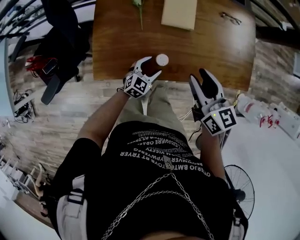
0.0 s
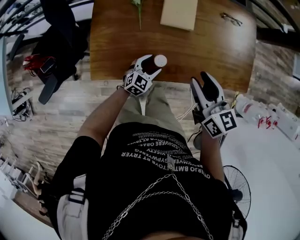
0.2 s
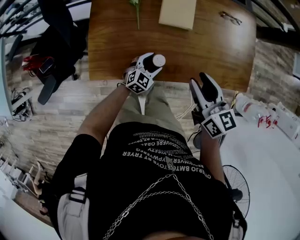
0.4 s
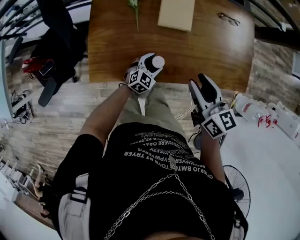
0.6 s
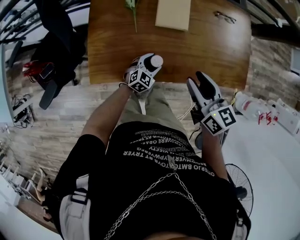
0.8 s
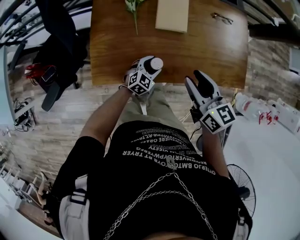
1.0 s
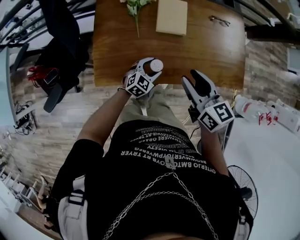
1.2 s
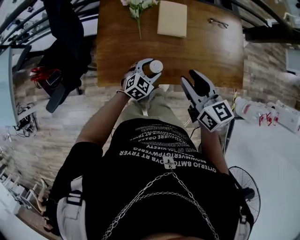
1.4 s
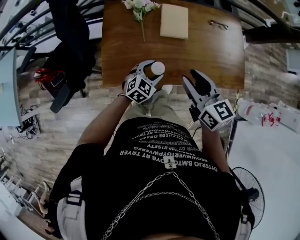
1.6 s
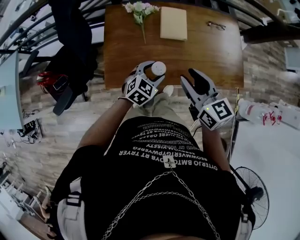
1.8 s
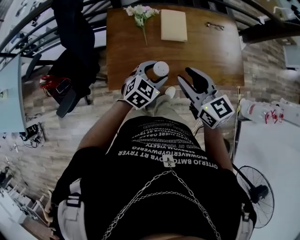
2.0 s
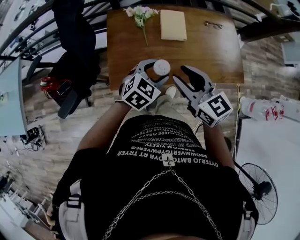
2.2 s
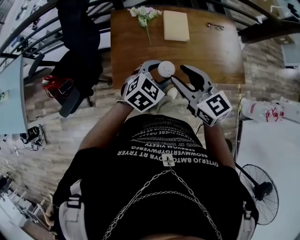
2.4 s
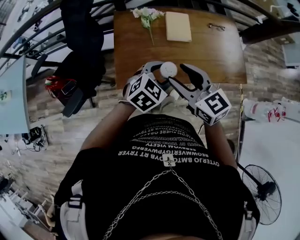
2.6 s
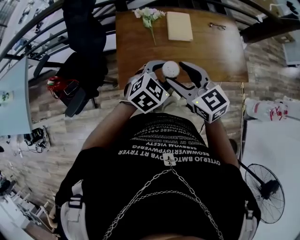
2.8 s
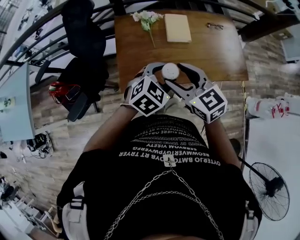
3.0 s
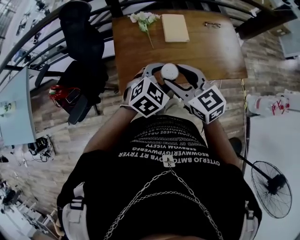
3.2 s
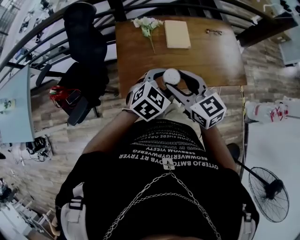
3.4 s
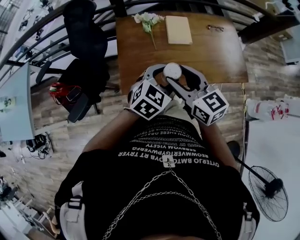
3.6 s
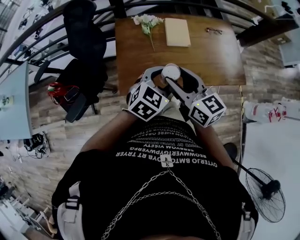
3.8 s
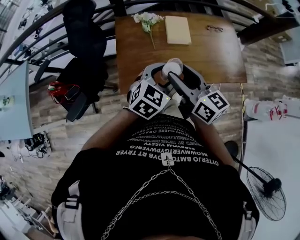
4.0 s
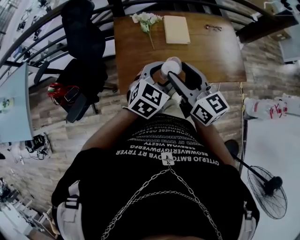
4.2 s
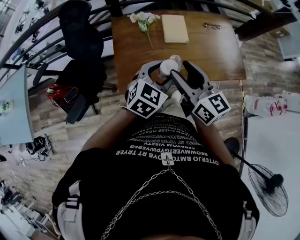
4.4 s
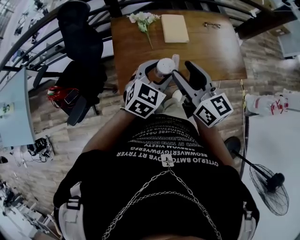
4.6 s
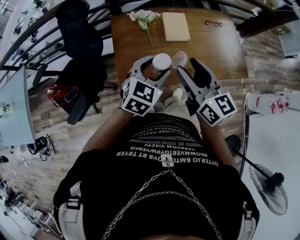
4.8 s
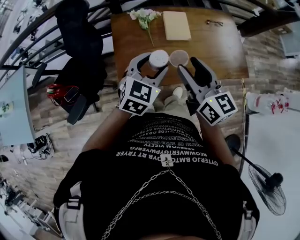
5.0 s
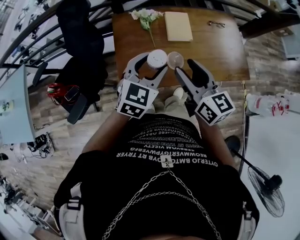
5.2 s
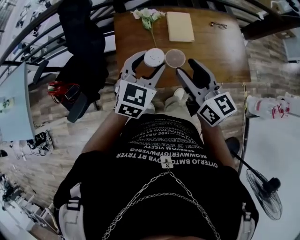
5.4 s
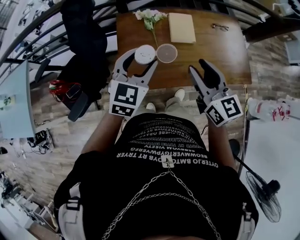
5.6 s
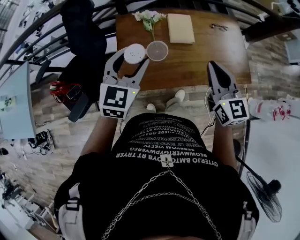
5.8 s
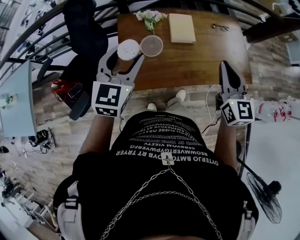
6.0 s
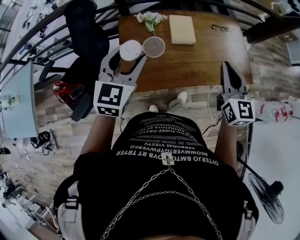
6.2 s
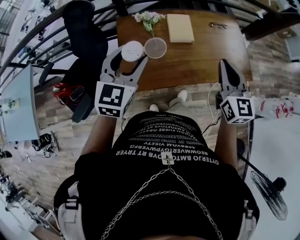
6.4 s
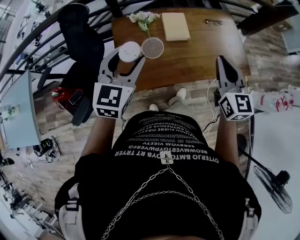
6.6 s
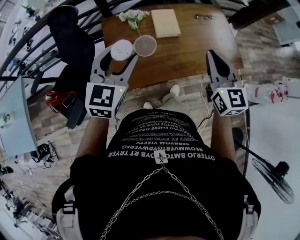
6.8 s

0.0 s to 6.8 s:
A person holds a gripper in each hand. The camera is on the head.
0.0 to 1.4 s: The right gripper moves some 5 cm. The left gripper heads upward, covering approximately 10 cm.
1.4 to 2.8 s: The right gripper heads to the left, backward and upward, covering some 15 cm, and opens its fingers. The left gripper shifts some 20 cm upward.
2.8 to 4.0 s: The right gripper rotates roughly 30 degrees.
4.0 to 5.4 s: The left gripper goes roughly 10 cm to the left and forward.
5.4 to 6.8 s: The left gripper moves upward, approximately 5 cm. Meanwhile the right gripper heads to the right, covering approximately 10 cm, swivels approximately 30 degrees, and closes up.

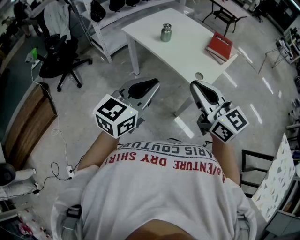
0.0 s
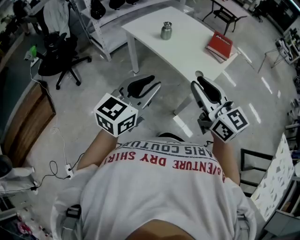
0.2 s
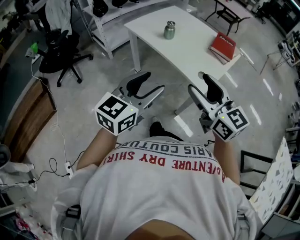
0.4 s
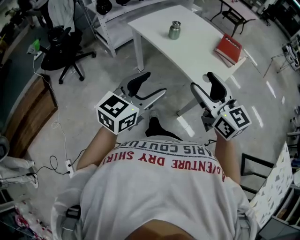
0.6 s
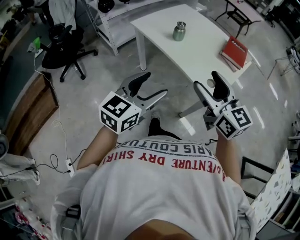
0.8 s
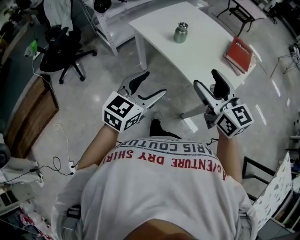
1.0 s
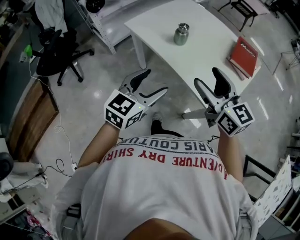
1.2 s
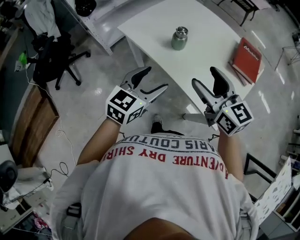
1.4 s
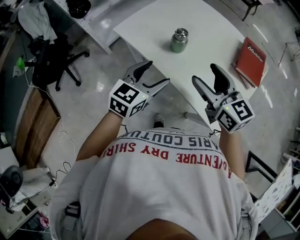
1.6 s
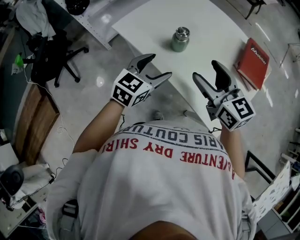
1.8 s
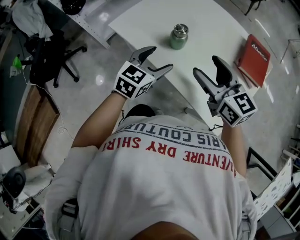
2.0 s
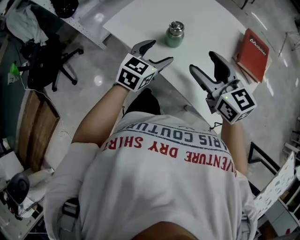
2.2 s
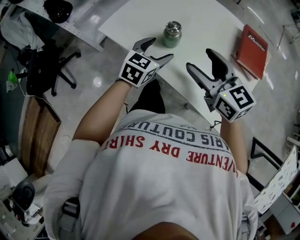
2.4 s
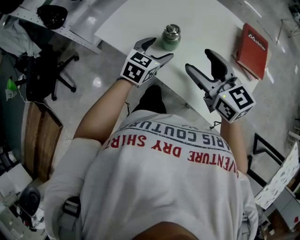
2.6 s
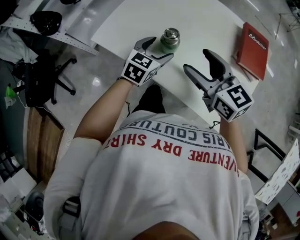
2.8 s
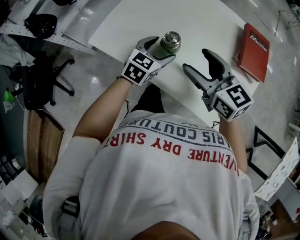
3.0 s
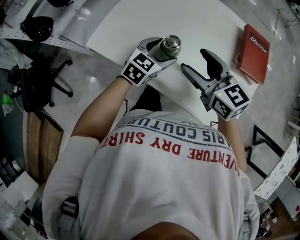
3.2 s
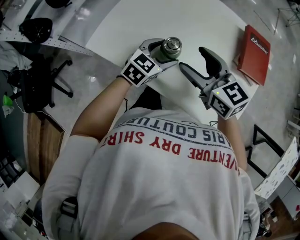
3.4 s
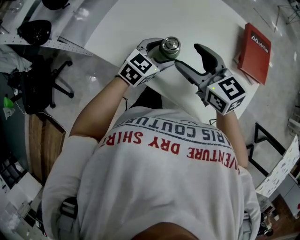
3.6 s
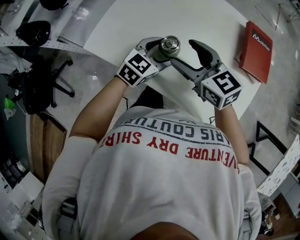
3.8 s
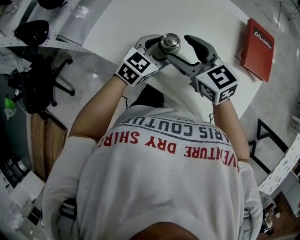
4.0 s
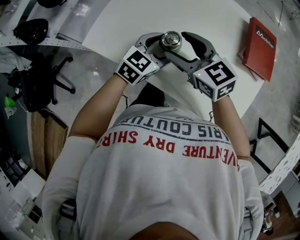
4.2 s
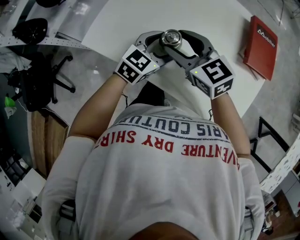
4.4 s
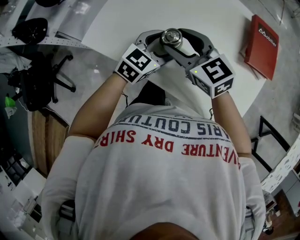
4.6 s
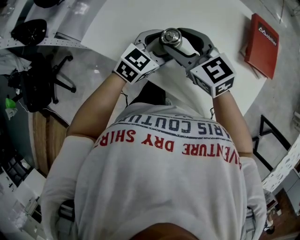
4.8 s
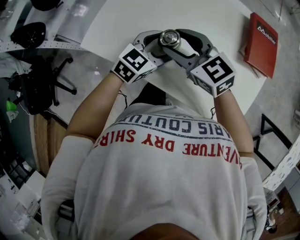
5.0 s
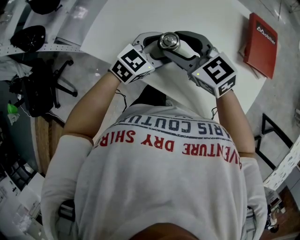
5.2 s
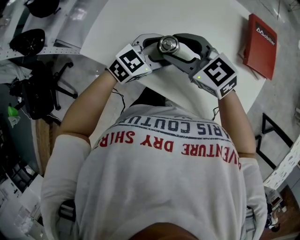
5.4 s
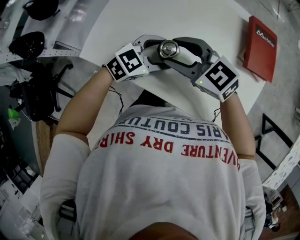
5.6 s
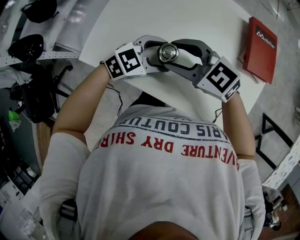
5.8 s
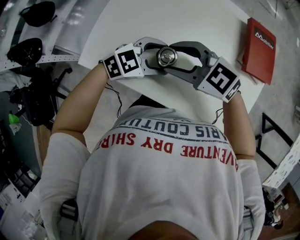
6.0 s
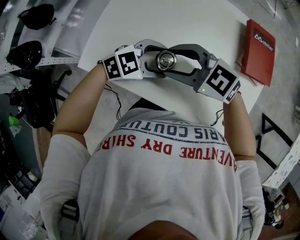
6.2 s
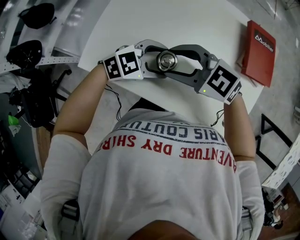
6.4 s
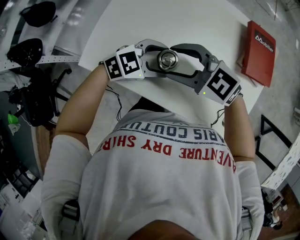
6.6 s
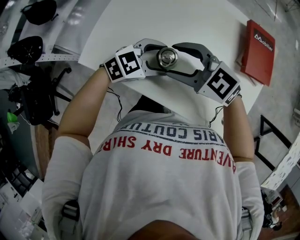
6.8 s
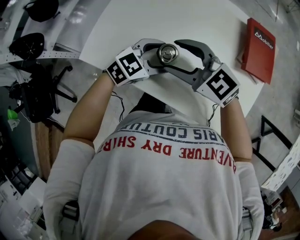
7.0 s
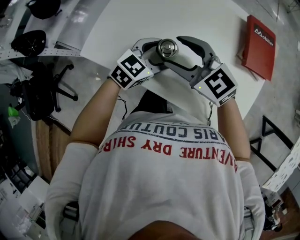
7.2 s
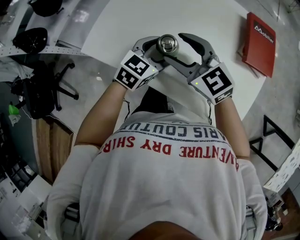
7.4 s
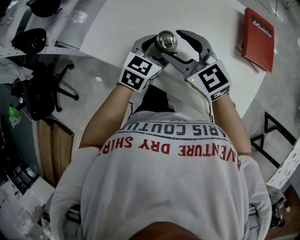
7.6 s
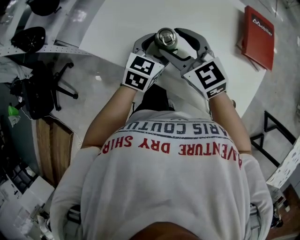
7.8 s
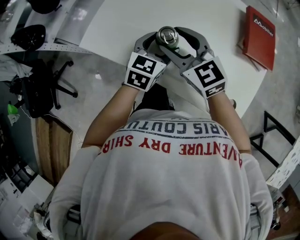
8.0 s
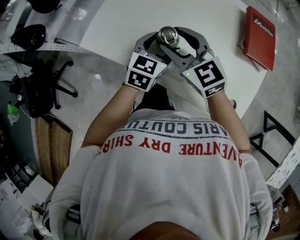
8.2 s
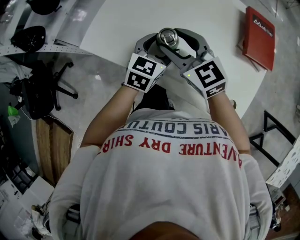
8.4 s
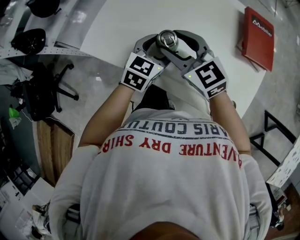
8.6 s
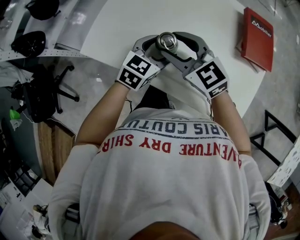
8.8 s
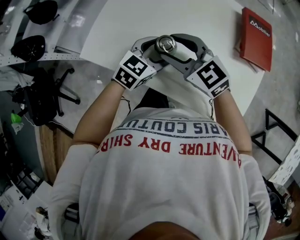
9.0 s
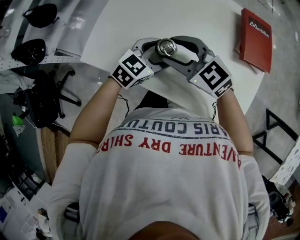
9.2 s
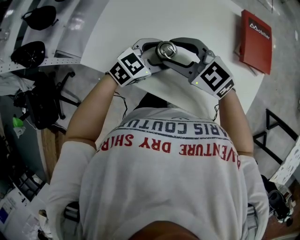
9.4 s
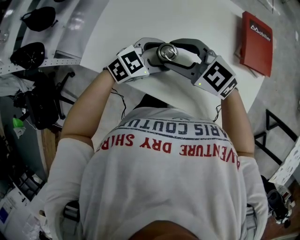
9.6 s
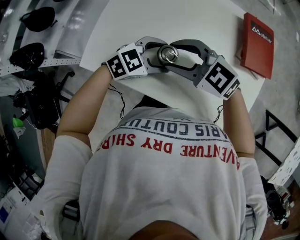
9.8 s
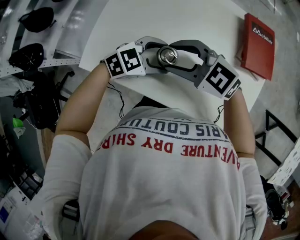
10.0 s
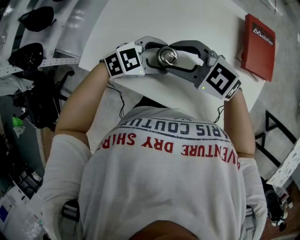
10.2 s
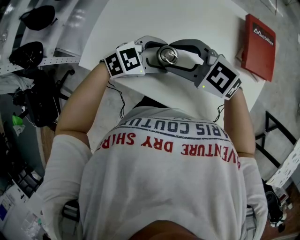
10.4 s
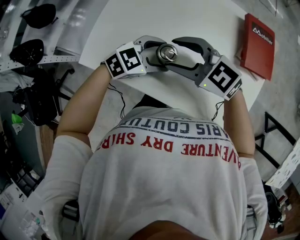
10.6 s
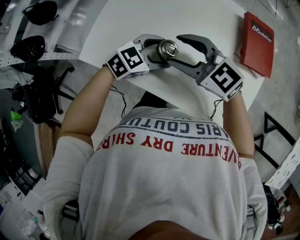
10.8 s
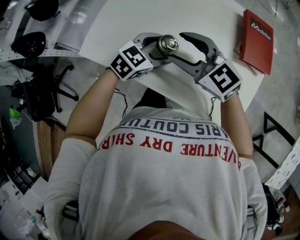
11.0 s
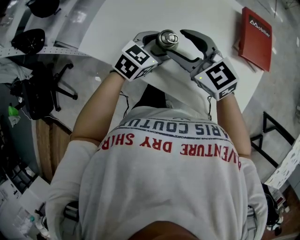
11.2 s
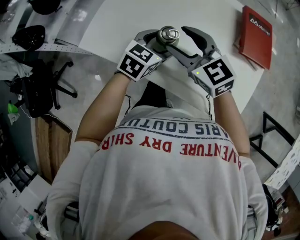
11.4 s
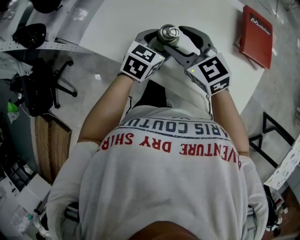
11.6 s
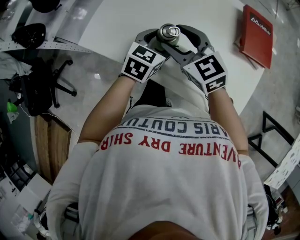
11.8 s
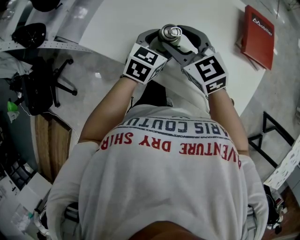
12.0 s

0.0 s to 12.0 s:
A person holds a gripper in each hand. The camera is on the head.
0.0 to 1.6 s: The right gripper is displaced forward by about 35 cm, and opens its fingers. The left gripper shifts some 40 cm forward and downward, and opens.
1.6 to 3.0 s: The right gripper moves forward and downward, approximately 10 cm, while the left gripper is displaced forward and downward by approximately 20 cm.
3.0 to 4.4 s: The right gripper heads to the left and forward, covering roughly 10 cm.
4.4 to 6.0 s: The left gripper turns by roughly 40 degrees; the right gripper swivels roughly 20 degrees.
6.0 to 7.6 s: The left gripper turns by roughly 40 degrees, while the right gripper changes its angle by roughly 20 degrees.
7.6 to 9.0 s: There are only small adjustments of the grippers.
9.0 to 10.4 s: The left gripper swivels approximately 30 degrees.
10.4 to 12.0 s: The right gripper changes its angle by about 30 degrees; the left gripper turns by about 50 degrees.

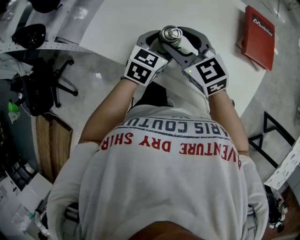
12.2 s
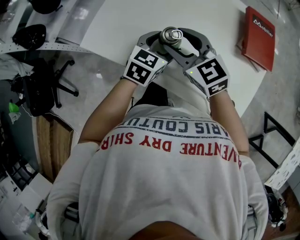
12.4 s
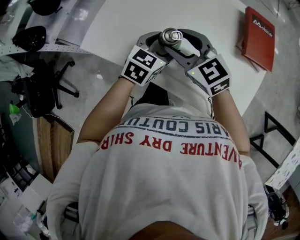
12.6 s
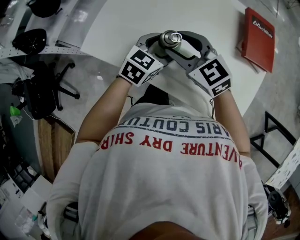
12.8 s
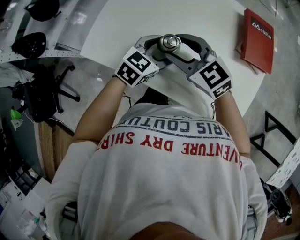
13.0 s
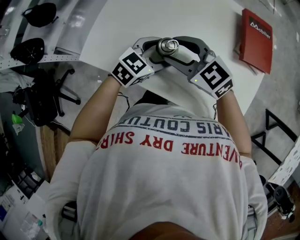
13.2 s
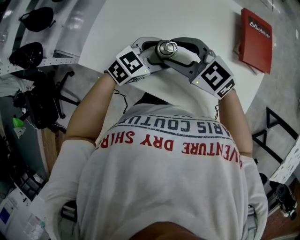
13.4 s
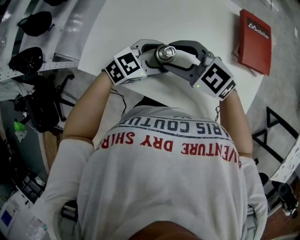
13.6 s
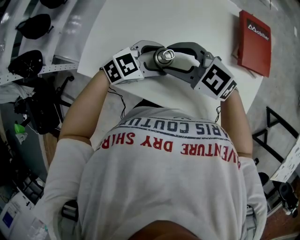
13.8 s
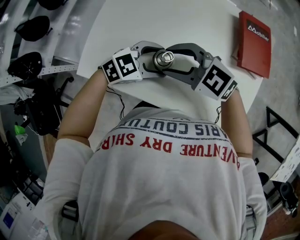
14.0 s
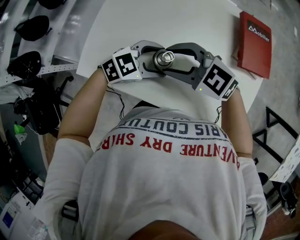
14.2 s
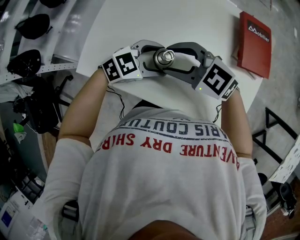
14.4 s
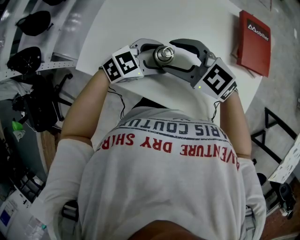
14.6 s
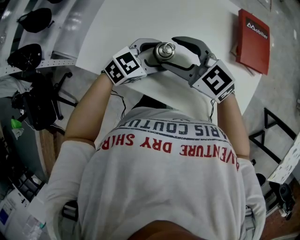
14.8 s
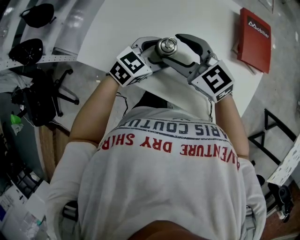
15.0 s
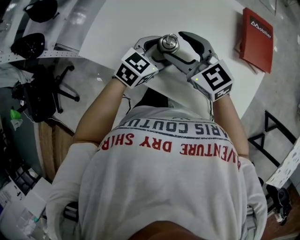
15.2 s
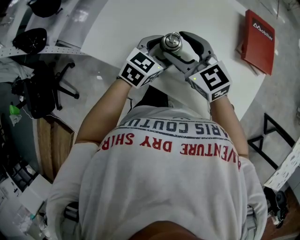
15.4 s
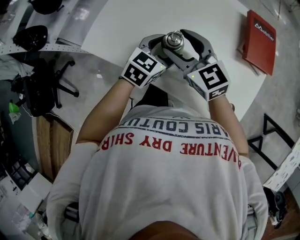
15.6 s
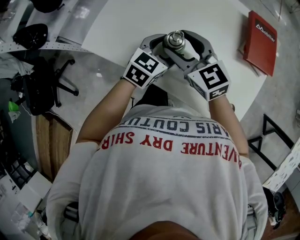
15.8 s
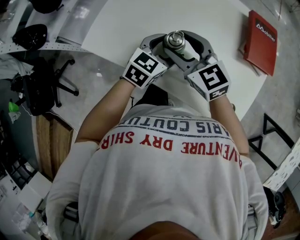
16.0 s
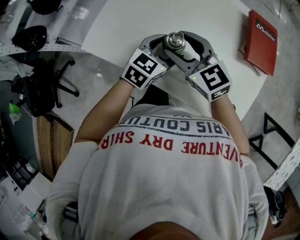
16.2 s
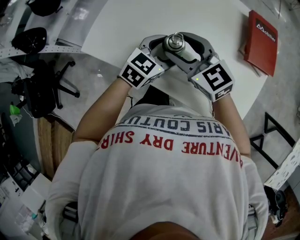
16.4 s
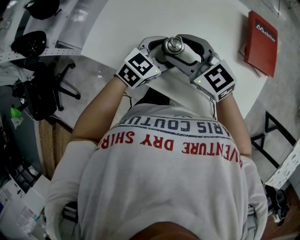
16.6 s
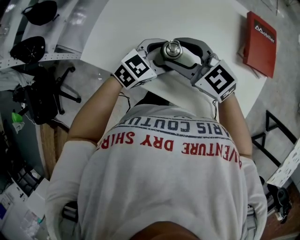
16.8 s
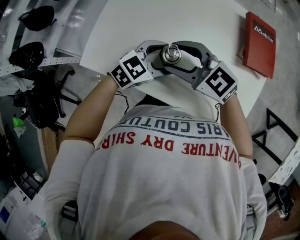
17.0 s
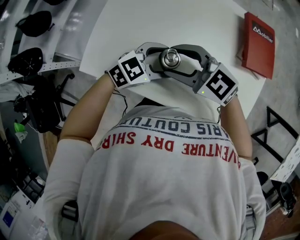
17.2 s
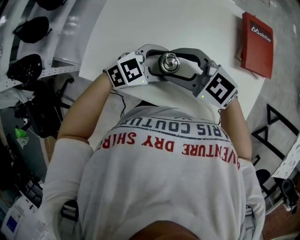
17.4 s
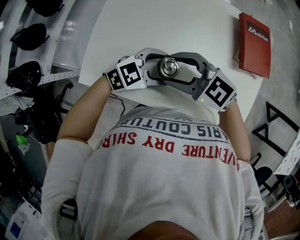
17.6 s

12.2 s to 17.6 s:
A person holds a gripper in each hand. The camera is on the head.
12.2 to 13.6 s: The right gripper changes its angle by some 20 degrees; the left gripper swivels some 40 degrees.
13.6 to 15.0 s: The grippers stay close to where they were, moving slightly.
15.0 to 16.2 s: The grippers move only a little.
16.2 to 17.6 s: The left gripper turns by roughly 40 degrees.
